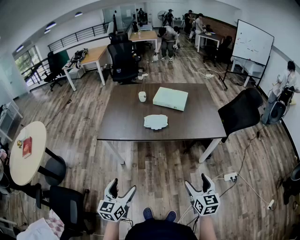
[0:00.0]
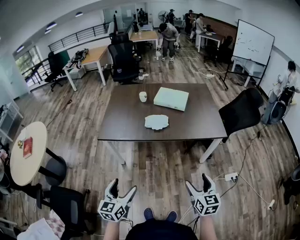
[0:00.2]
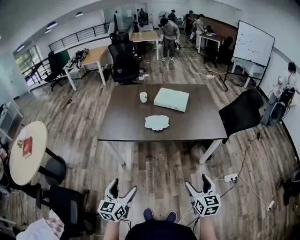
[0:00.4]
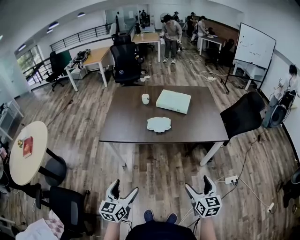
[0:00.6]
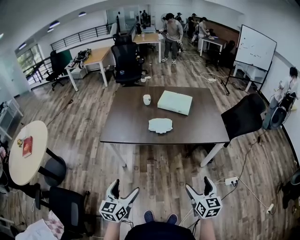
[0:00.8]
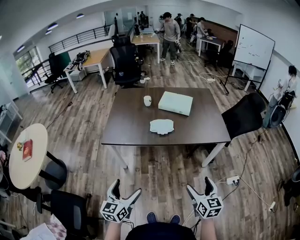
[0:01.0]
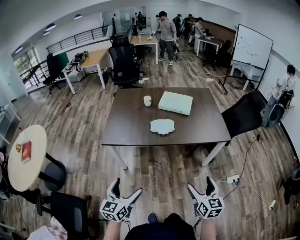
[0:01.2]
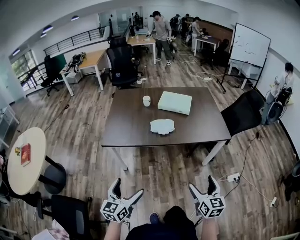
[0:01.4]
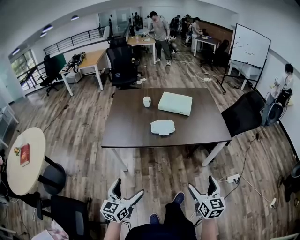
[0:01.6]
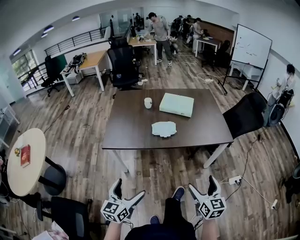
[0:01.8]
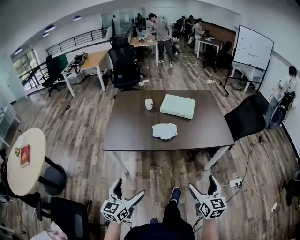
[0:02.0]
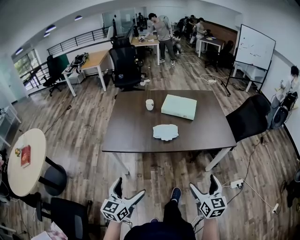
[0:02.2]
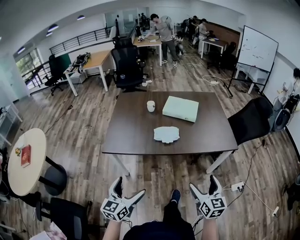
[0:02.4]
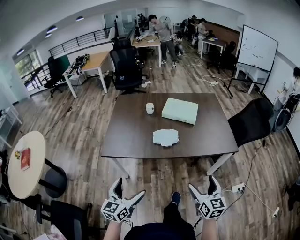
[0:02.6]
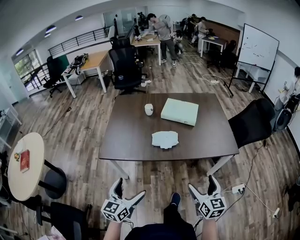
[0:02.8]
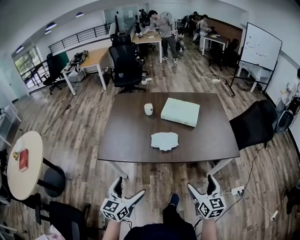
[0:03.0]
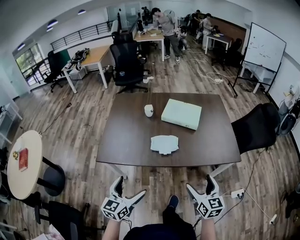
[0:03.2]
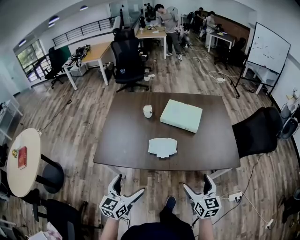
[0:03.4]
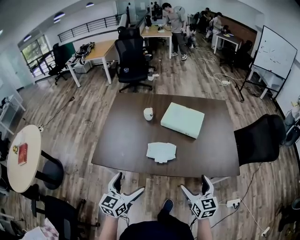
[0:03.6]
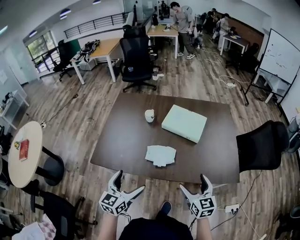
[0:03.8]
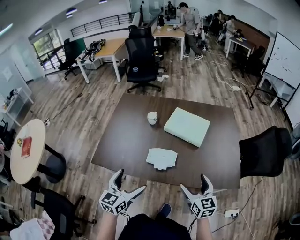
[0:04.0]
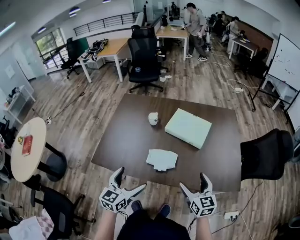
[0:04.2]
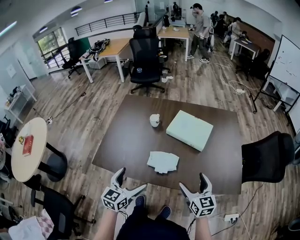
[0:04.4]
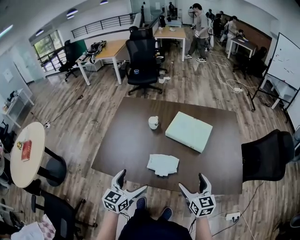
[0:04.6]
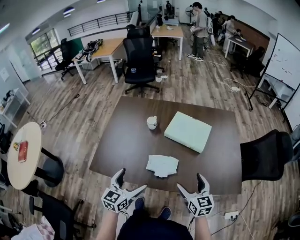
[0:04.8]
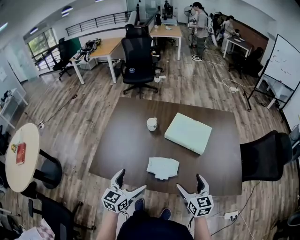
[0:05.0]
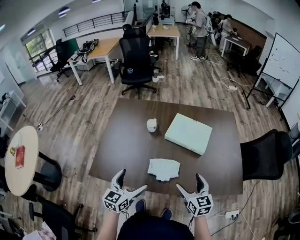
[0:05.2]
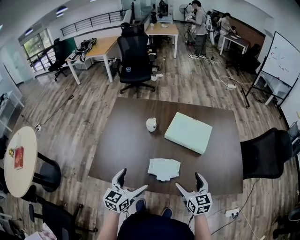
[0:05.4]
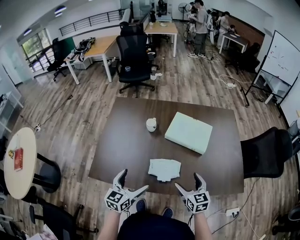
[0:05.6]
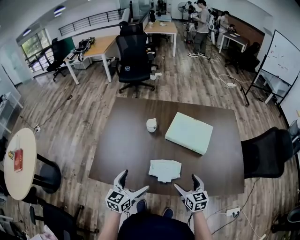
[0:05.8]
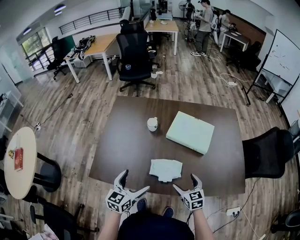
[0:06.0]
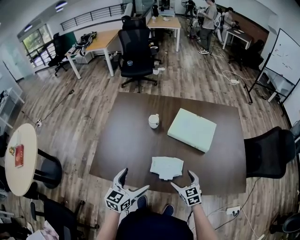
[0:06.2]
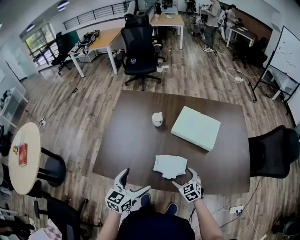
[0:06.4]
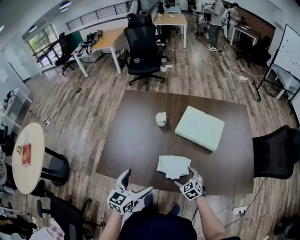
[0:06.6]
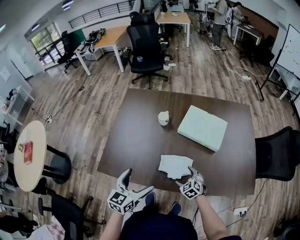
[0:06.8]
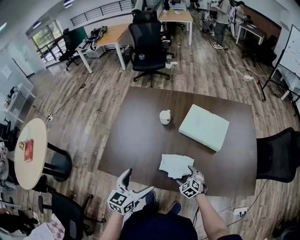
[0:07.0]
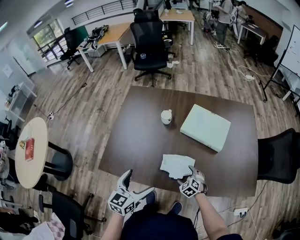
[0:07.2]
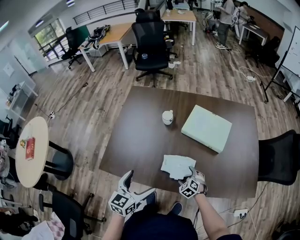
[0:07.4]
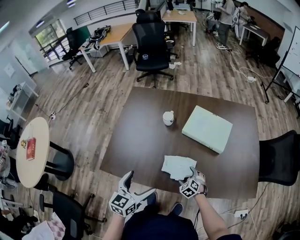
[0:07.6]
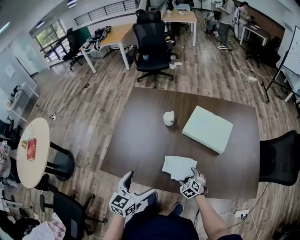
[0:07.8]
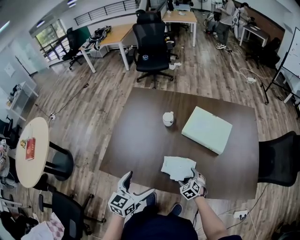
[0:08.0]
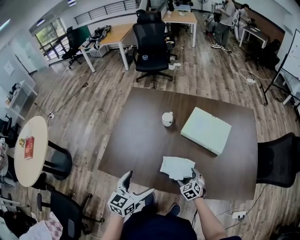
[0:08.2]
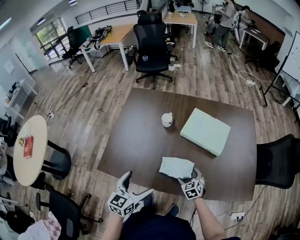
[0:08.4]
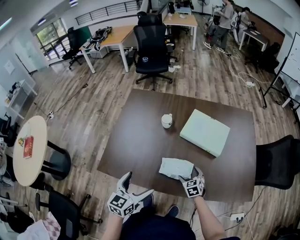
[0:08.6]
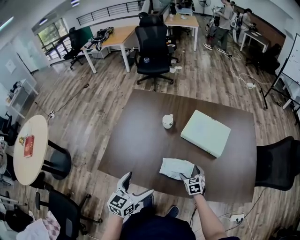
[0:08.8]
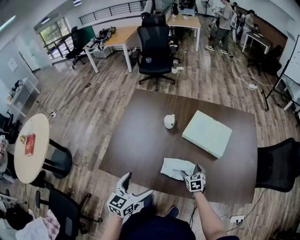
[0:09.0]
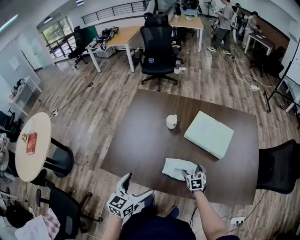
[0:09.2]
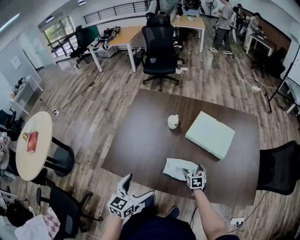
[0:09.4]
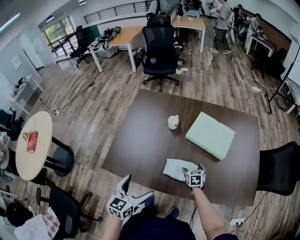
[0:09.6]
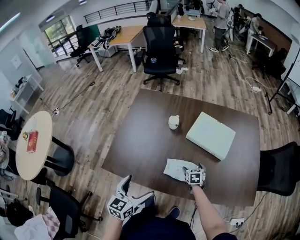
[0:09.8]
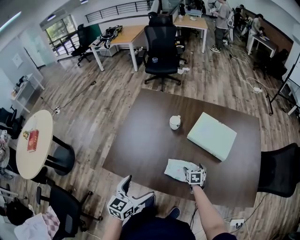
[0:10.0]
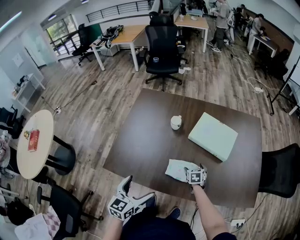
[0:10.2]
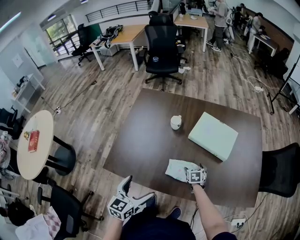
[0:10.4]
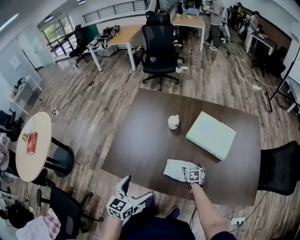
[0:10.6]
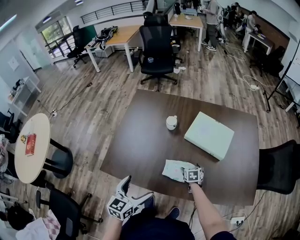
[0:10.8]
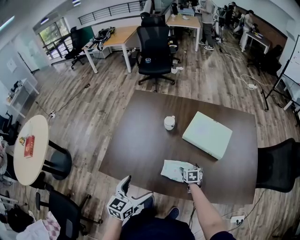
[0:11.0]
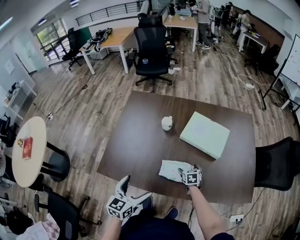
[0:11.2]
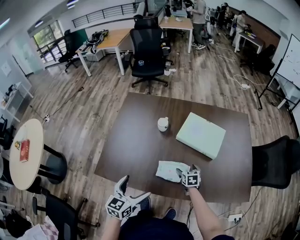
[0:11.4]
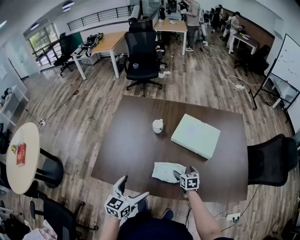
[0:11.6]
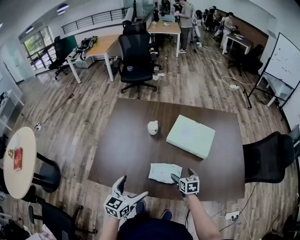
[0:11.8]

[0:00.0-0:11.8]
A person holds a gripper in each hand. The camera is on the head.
0.0 to 1.4 s: The grippers both shift to the left by approximately 5 cm.
1.4 to 3.0 s: Both grippers move forward, some 20 cm.
3.0 to 4.4 s: The grippers both shift forward by approximately 25 cm.
4.4 to 6.0 s: The right gripper shifts some 20 cm downward, forward and to the left; the left gripper moves forward, about 10 cm.
6.0 to 7.4 s: The right gripper heads downward, covering roughly 15 cm, and rotates some 40 degrees.
7.4 to 8.8 s: The right gripper moves upward, some 5 cm, and turns by approximately 30 degrees.
8.8 to 10.4 s: The right gripper moves forward, about 5 cm.
10.4 to 11.8 s: The left gripper shifts by about 5 cm. The right gripper goes some 10 cm upward.

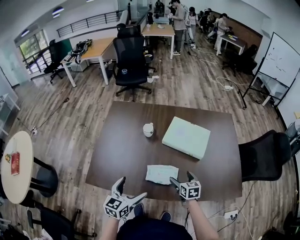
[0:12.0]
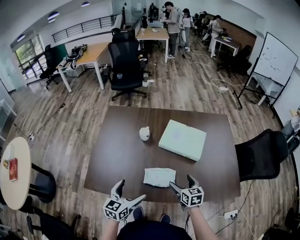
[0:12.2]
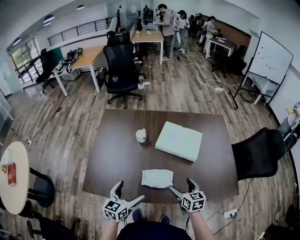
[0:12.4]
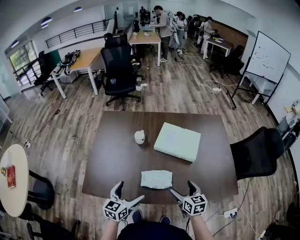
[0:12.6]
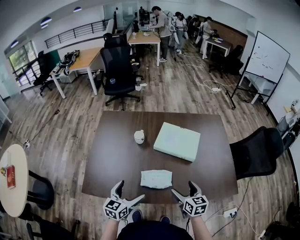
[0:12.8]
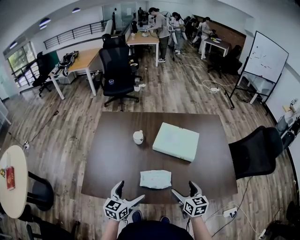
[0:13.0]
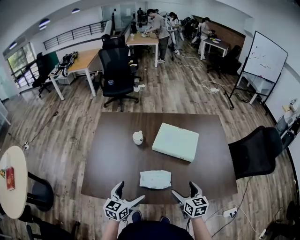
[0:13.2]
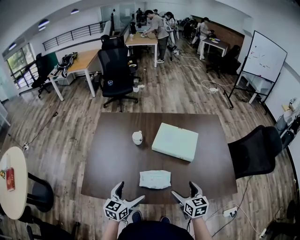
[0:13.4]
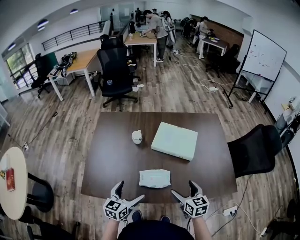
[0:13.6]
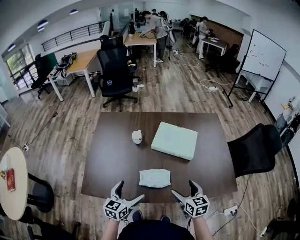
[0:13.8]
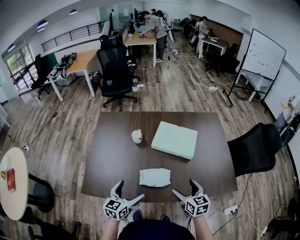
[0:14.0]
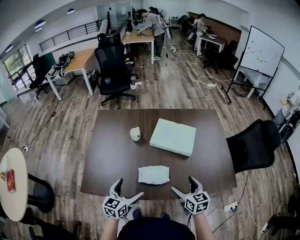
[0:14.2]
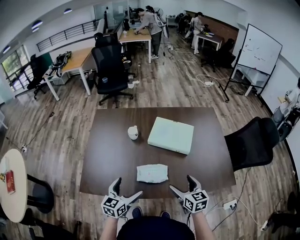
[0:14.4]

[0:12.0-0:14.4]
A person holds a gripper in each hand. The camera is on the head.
12.0 to 13.2 s: The right gripper is displaced upward and backward by roughly 10 cm.
13.2 to 14.4 s: There are only small adjustments of the grippers.

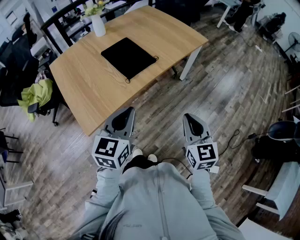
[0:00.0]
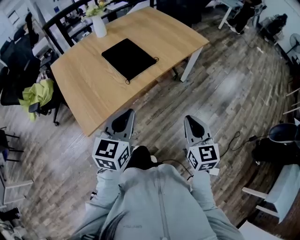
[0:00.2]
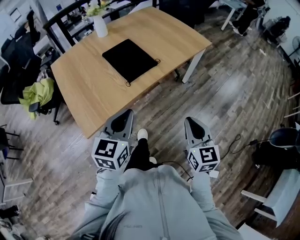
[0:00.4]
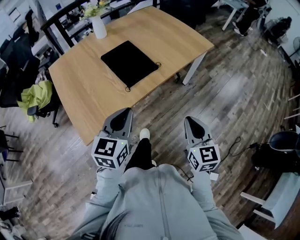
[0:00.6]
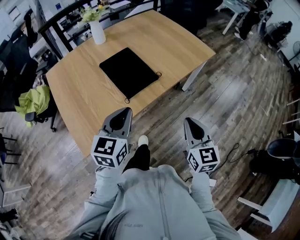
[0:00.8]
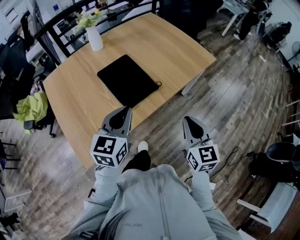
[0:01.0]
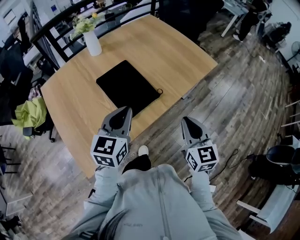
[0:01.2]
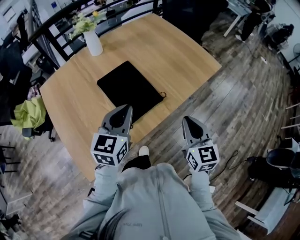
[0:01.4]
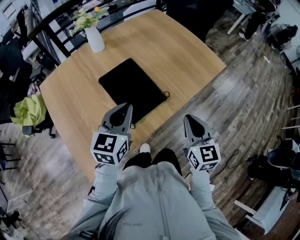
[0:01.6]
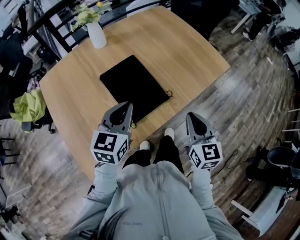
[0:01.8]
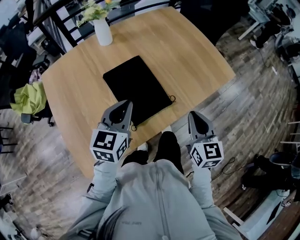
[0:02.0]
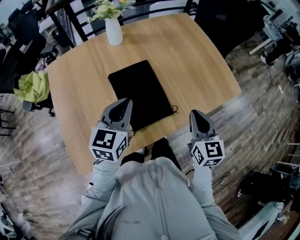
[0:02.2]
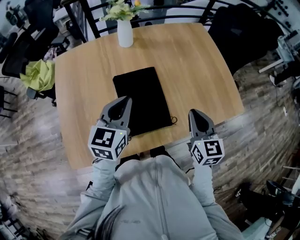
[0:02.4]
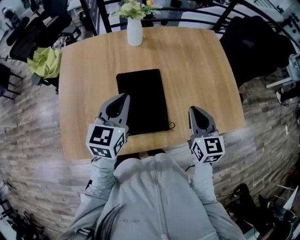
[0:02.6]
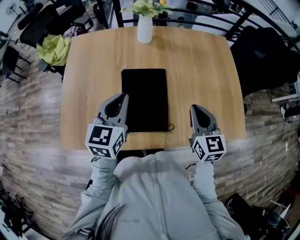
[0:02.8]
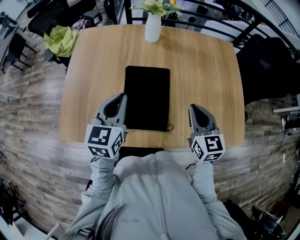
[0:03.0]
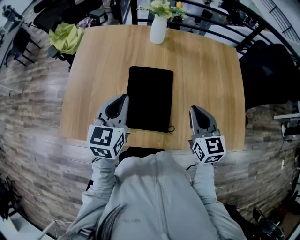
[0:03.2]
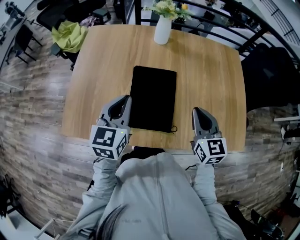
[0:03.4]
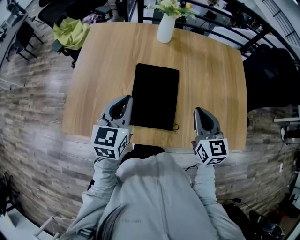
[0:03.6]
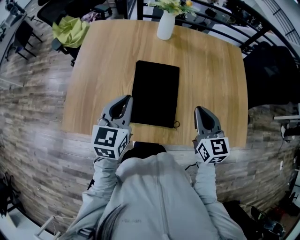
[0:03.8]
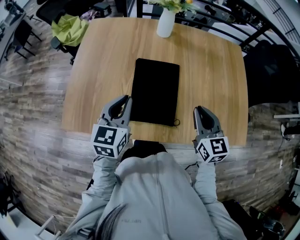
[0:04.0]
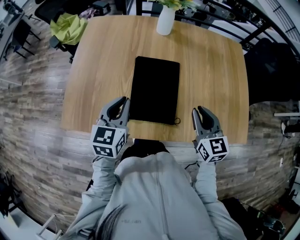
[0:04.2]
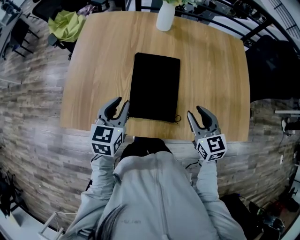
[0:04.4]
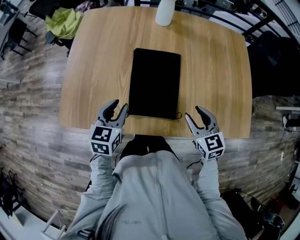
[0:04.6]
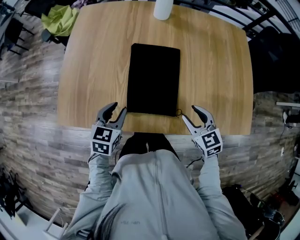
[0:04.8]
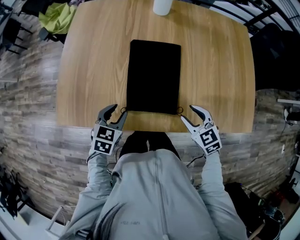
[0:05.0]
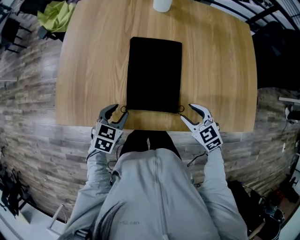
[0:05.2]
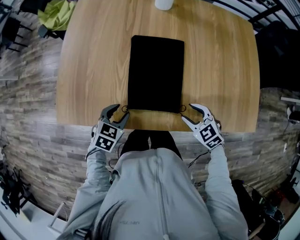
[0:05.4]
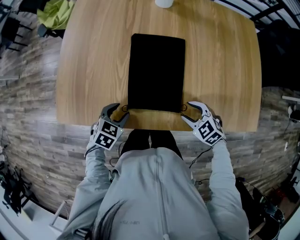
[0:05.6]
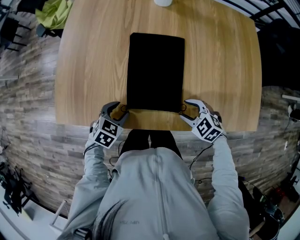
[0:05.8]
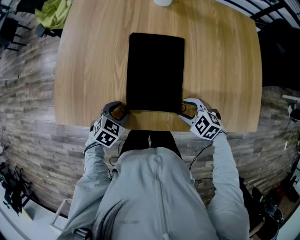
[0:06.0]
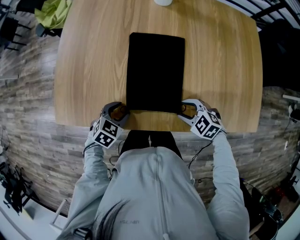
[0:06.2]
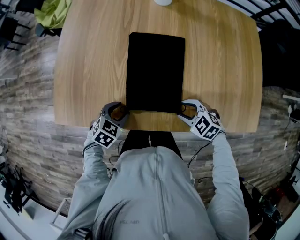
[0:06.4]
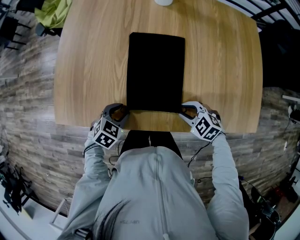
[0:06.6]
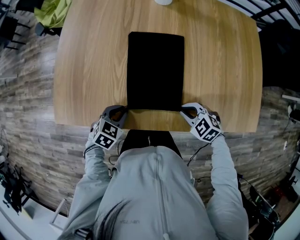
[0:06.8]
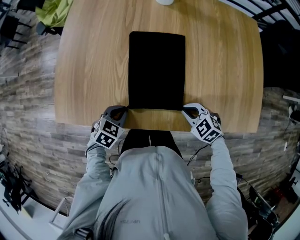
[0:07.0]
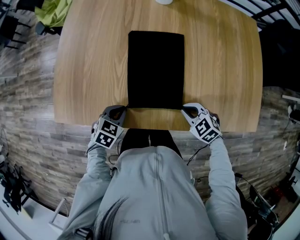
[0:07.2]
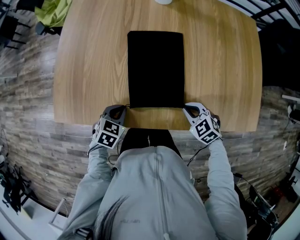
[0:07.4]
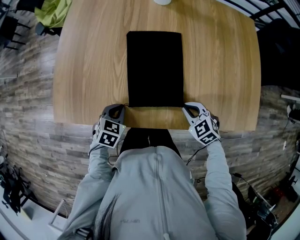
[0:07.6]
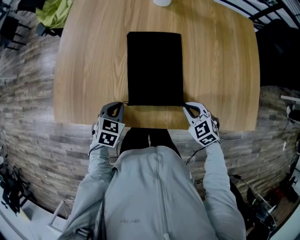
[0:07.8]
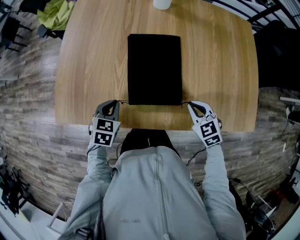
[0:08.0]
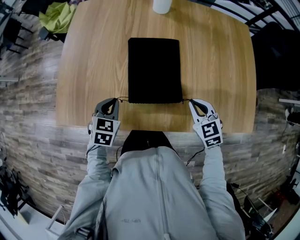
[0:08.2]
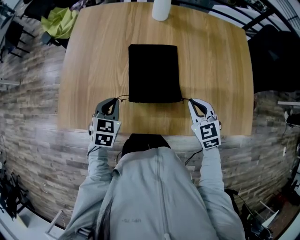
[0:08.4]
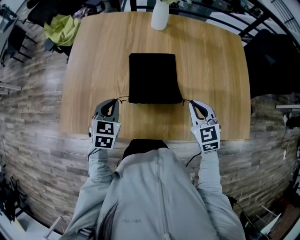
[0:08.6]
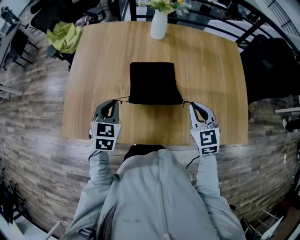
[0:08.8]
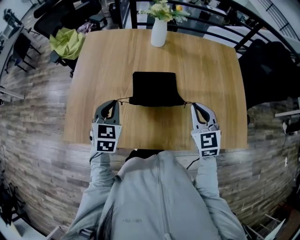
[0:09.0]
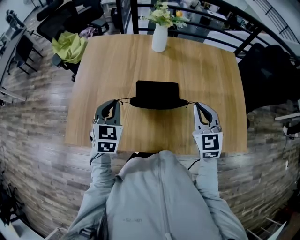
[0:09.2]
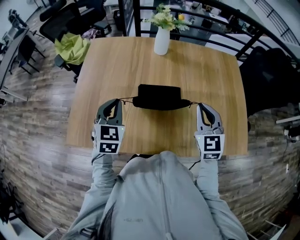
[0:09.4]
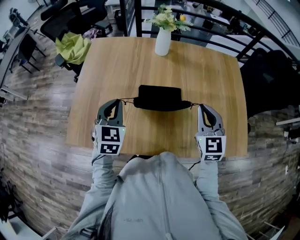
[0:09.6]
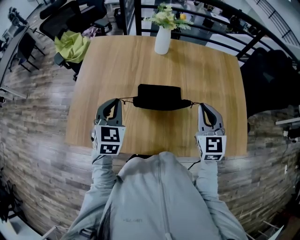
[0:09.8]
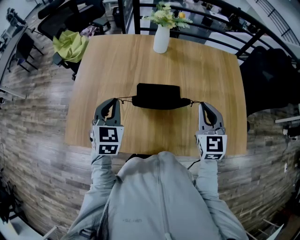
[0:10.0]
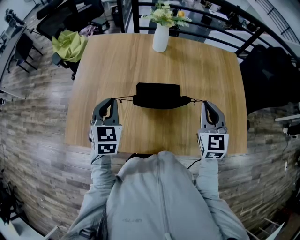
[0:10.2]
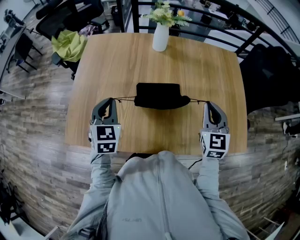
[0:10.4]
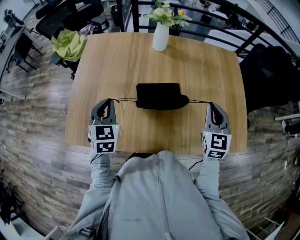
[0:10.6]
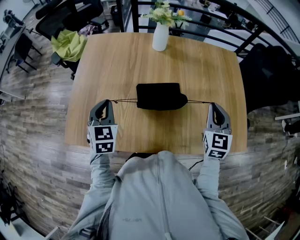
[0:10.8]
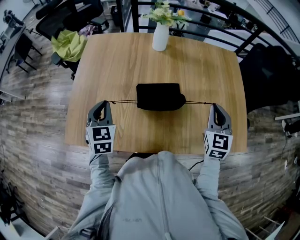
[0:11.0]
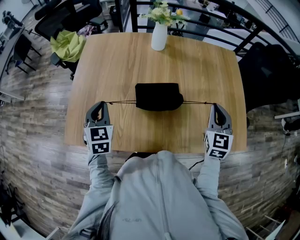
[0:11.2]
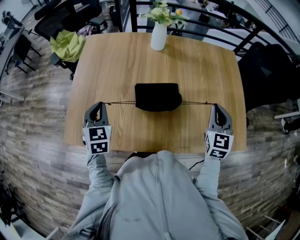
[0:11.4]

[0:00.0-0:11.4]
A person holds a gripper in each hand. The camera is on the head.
0.0 to 1.4 s: Both grippers move forward, about 25 cm.
1.4 to 2.8 s: The left gripper ends up approximately 10 cm from where it was, and changes its angle by about 40 degrees, while the right gripper changes place by roughly 25 cm, and rotates approximately 40 degrees.
2.8 to 4.2 s: The left gripper is displaced backward by some 5 cm.
4.2 to 5.6 s: Both grippers move downward, some 20 cm. The right gripper tips its fingers downward by some 30 degrees, and opens its fingers; the left gripper tilts its fingers roughly 30 degrees downward, and opens its fingers.
5.6 to 7.2 s: The left gripper closes up. Meanwhile the right gripper closes.
7.2 to 8.6 s: Both grippers travel together upward and forward, about 15 cm. The right gripper rotates about 40 degrees, while the left gripper changes its angle by approximately 30 degrees.
8.6 to 10.0 s: Both grippers travel together upward, some 10 cm. The right gripper changes its angle by some 20 degrees.
10.0 to 11.4 s: The left gripper heads to the left, covering some 5 cm, while the right gripper shifts some 5 cm to the right.
